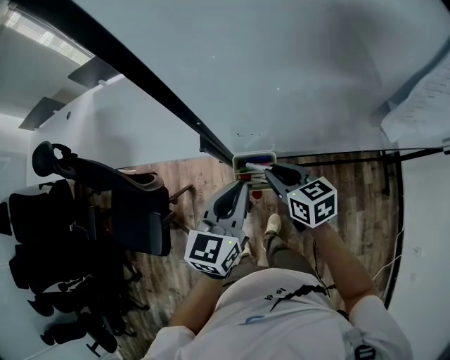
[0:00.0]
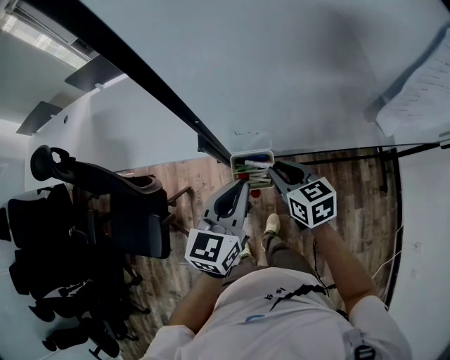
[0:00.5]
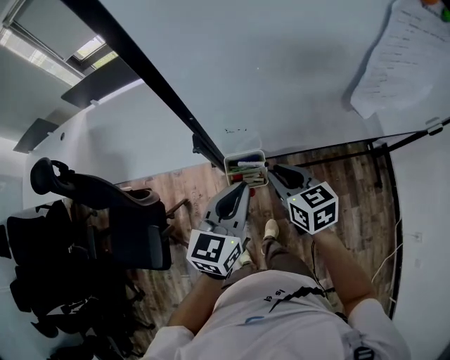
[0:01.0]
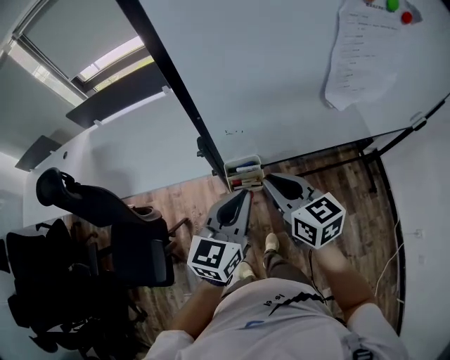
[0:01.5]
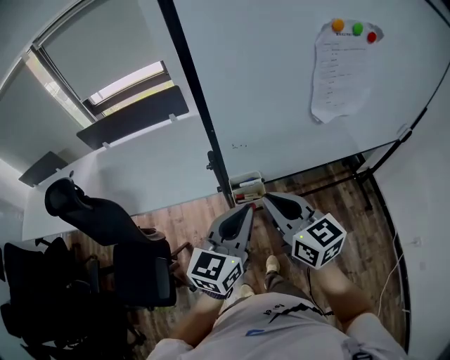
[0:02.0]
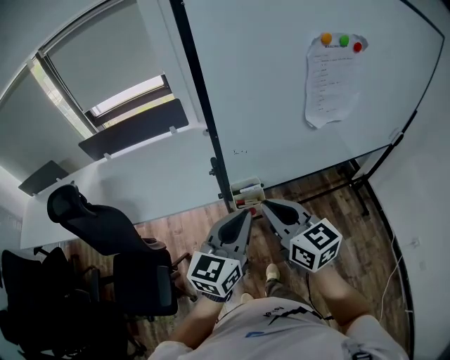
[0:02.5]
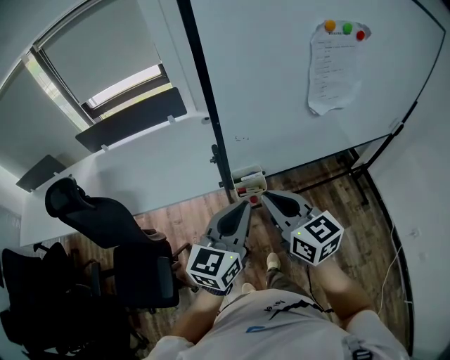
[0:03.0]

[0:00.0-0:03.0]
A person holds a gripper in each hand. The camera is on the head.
0:00.0 to 0:01.5: The left gripper heads upward and backward, covering about 10 cm. The right gripper travels upward and backward by some 15 cm.
0:01.5 to 0:03.0: The grippers both shift backward and upward by some 10 cm.

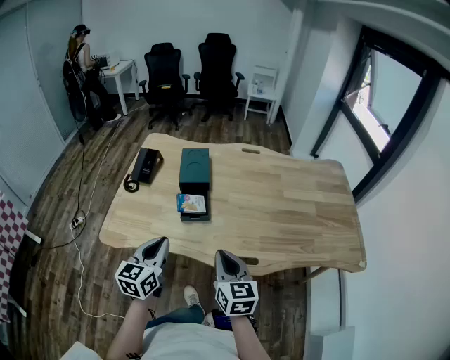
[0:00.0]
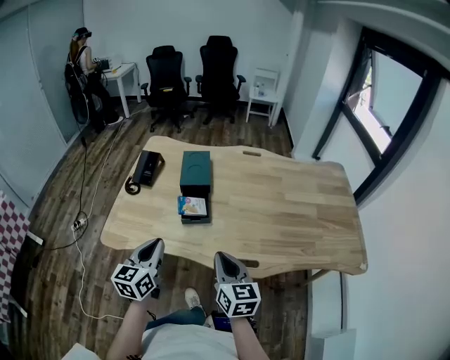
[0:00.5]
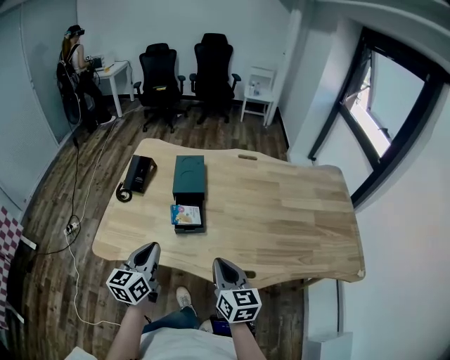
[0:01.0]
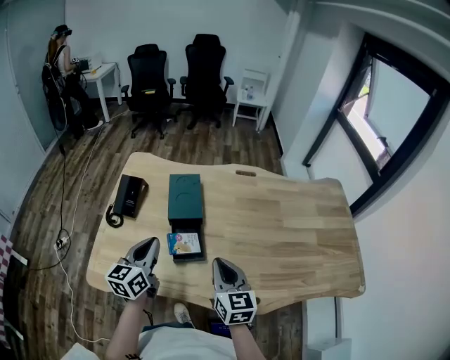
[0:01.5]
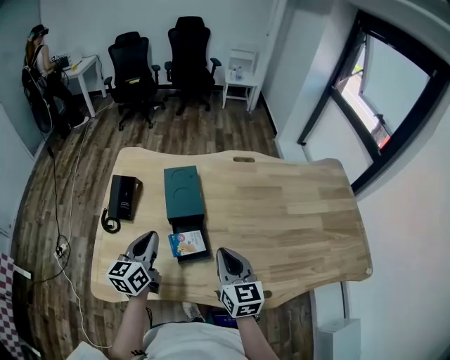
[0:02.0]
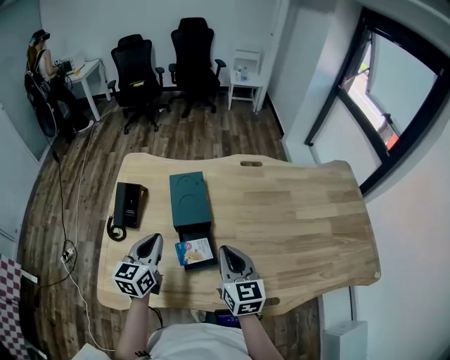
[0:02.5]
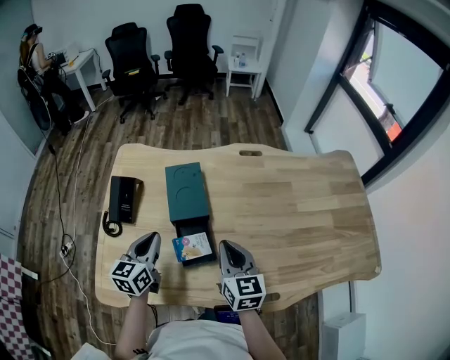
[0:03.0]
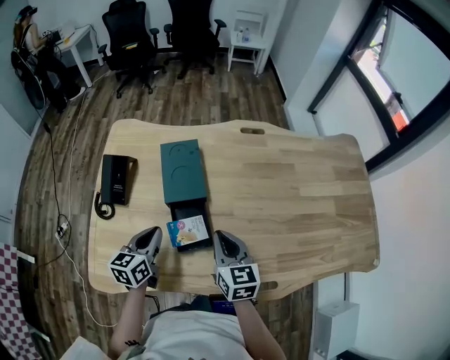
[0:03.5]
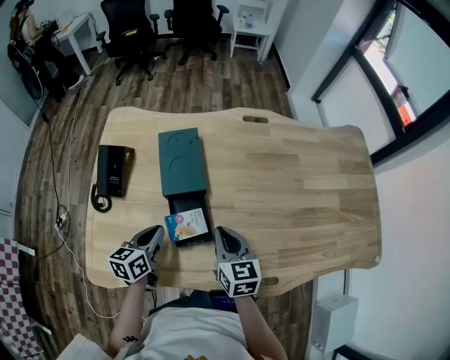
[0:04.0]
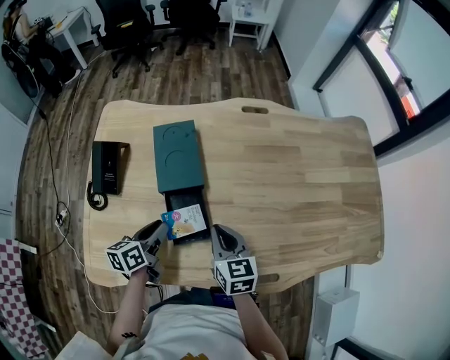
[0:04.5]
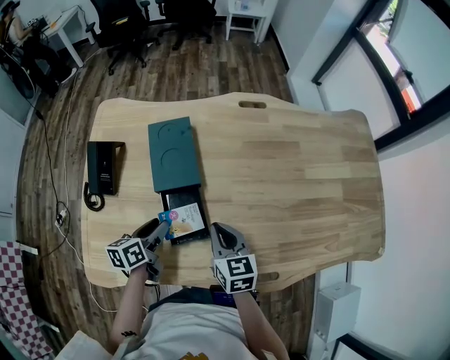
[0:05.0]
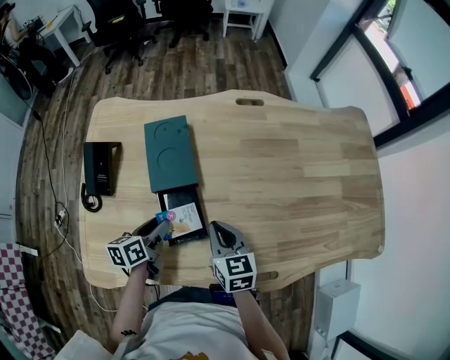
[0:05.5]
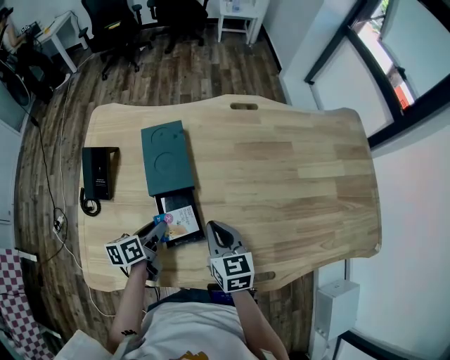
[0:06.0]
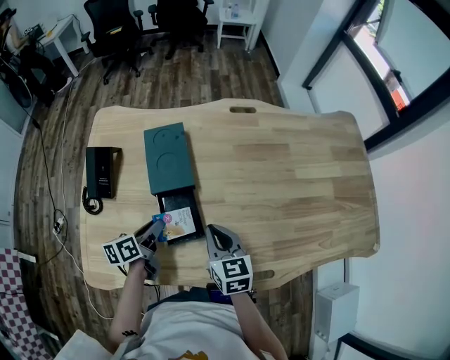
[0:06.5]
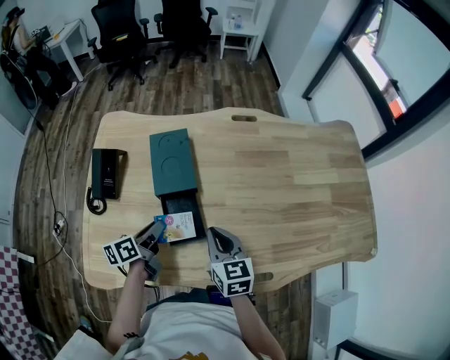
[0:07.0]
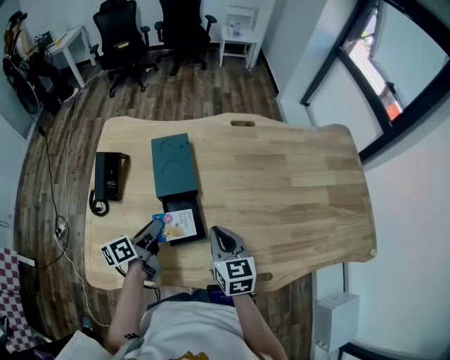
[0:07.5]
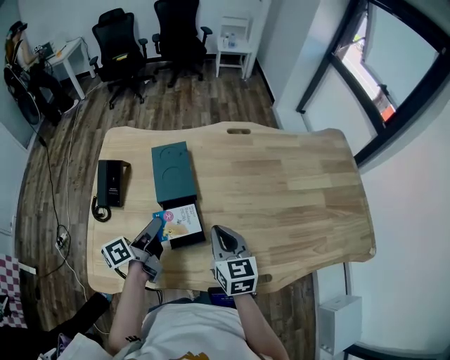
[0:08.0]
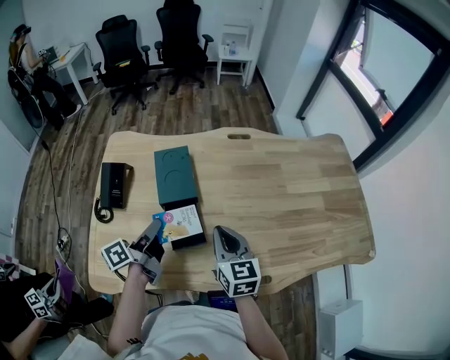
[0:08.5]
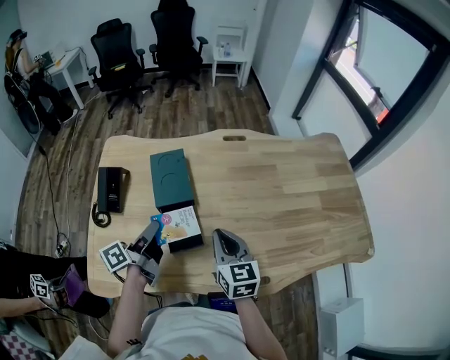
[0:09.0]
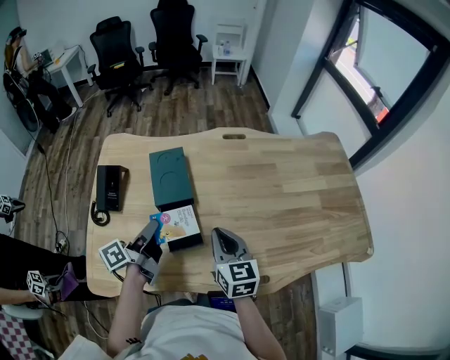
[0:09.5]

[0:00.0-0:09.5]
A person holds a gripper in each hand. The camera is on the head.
0:00.0 to 0:02.0: The two grippers go roughly 25 cm forward.
0:02.0 to 0:04.0: The grippers both shift downward by approximately 10 cm. The left gripper rotates about 20 degrees.
0:04.0 to 0:05.5: The left gripper ends up some 5 cm from where it was, and opens.
0:05.5 to 0:07.5: The two grippers go roughly 5 cm upward. The left gripper changes its angle by about 20 degrees.
0:07.5 to 0:09.5: The left gripper is displaced upward by roughly 5 cm.

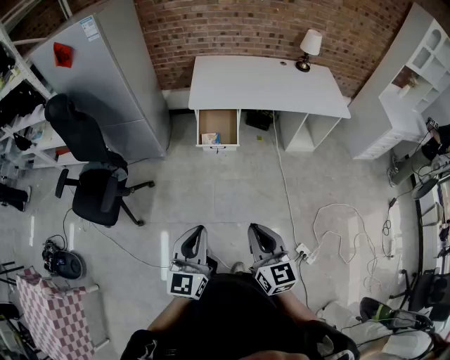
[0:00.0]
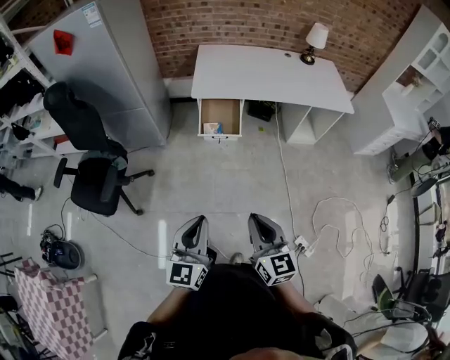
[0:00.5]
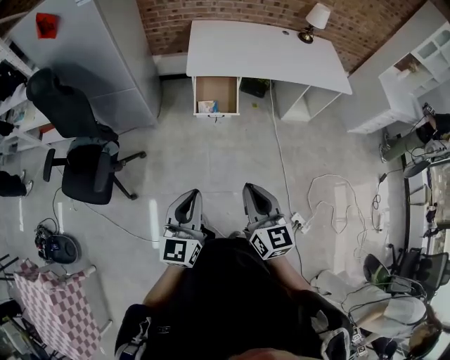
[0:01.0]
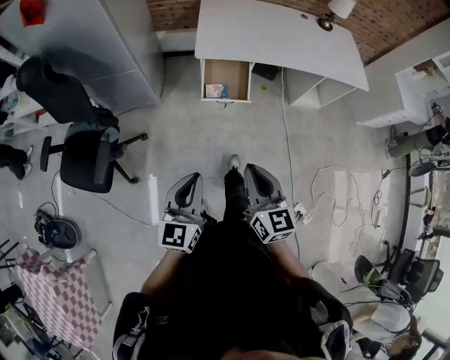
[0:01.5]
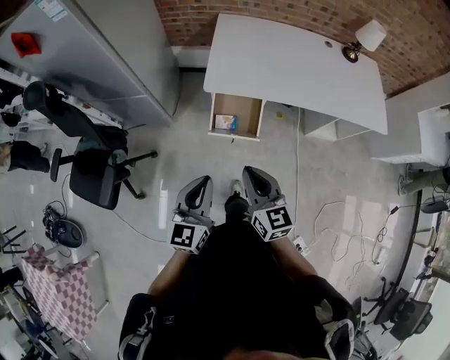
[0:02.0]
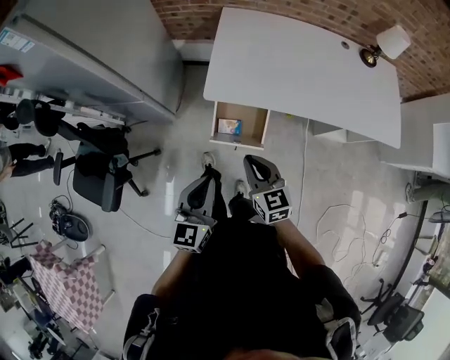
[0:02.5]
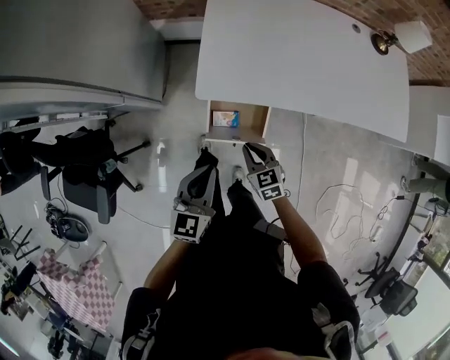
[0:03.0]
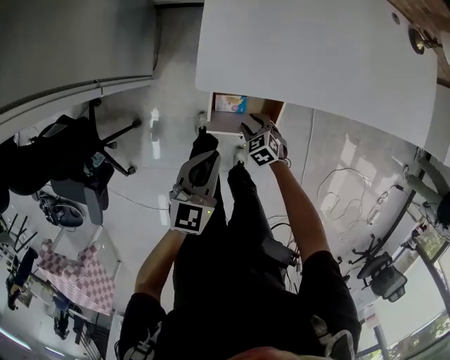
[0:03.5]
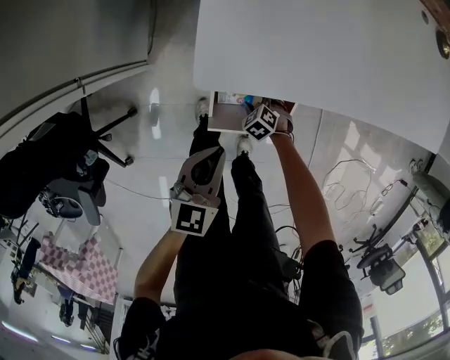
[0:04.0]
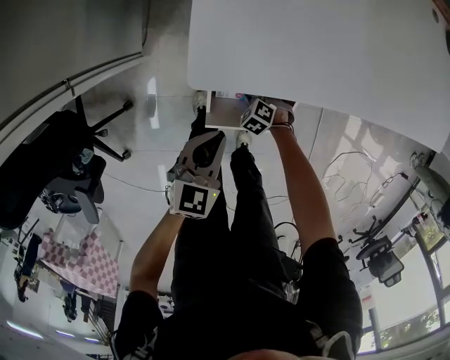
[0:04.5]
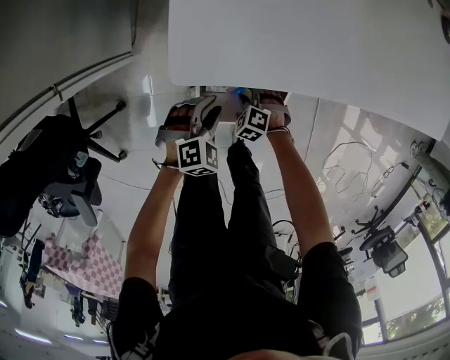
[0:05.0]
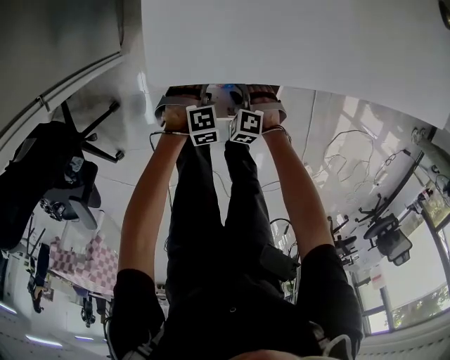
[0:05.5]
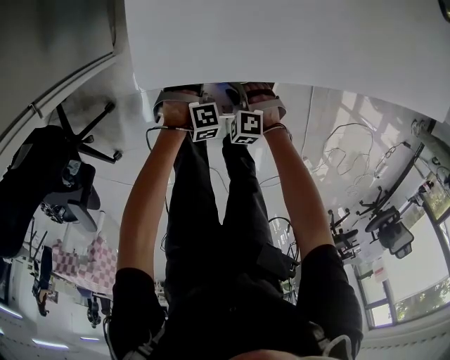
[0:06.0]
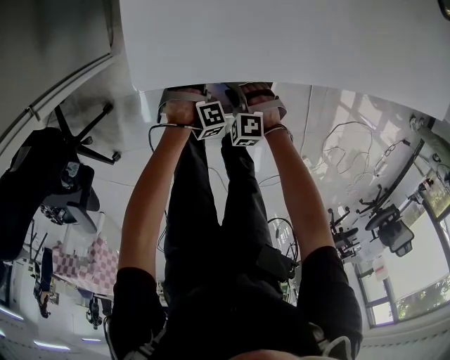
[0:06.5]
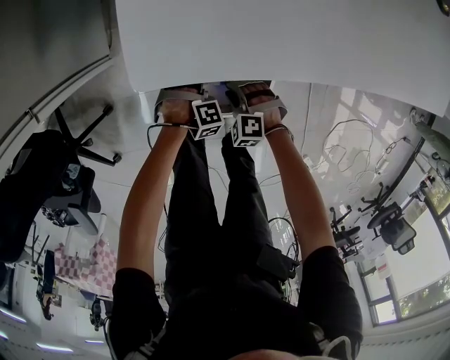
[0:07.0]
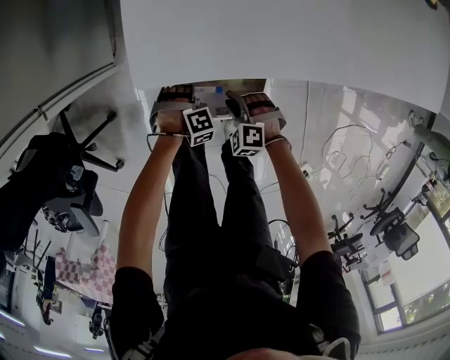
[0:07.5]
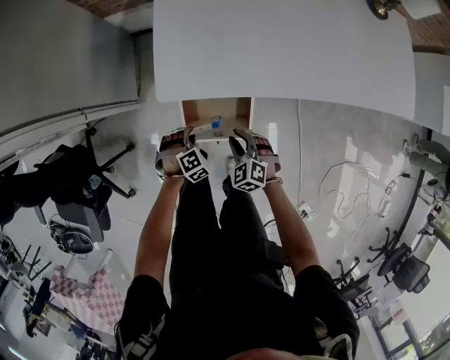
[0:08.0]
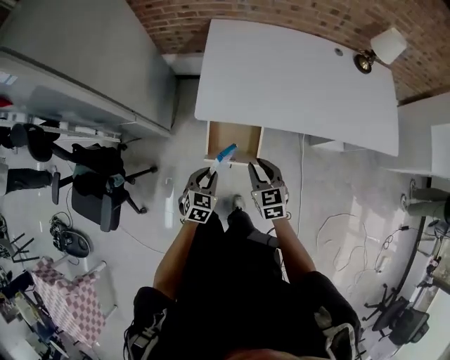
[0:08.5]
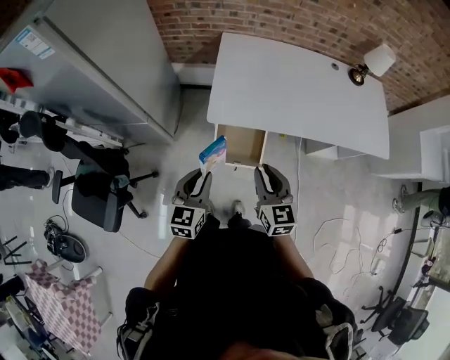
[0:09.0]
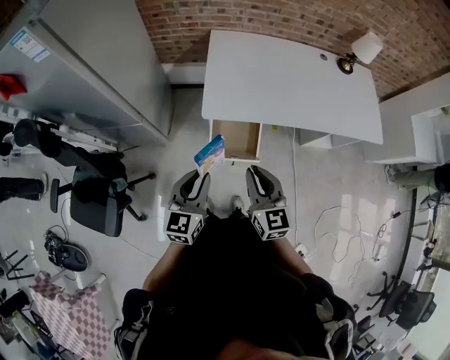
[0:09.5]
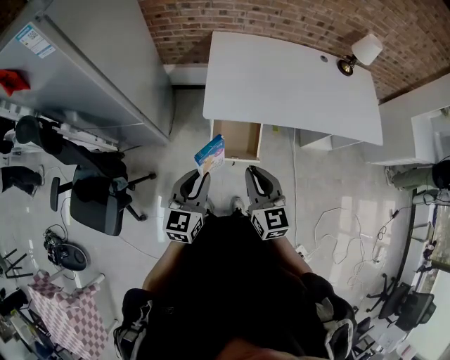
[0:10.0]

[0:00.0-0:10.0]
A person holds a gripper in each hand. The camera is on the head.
0:00.0 to 0:02.0: The grippers both shift forward by some 40 cm.
0:02.0 to 0:04.0: The left gripper travels downward by approximately 30 cm, and changes its angle by about 30 degrees, while the right gripper goes roughly 60 cm downward, tilts its fingers some 60 degrees downward, and opens.
0:04.0 to 0:06.0: The left gripper shifts roughly 30 cm downward, rotates around the line of its fingers by approximately 80 degrees, clockwise from behind, and opens its fingers. Meanwhile the right gripper rotates some 30 degrees.
0:06.0 to 0:08.0: Both grippers move upward, about 20 cm. The right gripper turns by about 30 degrees, while the left gripper rotates about 30 degrees, and closes.
0:08.0 to 0:10.0: Both grippers travel together upward, about 40 cm. The right gripper points its fingers approximately 40 degrees further upward. The left gripper tips its fingers upward by about 50 degrees.

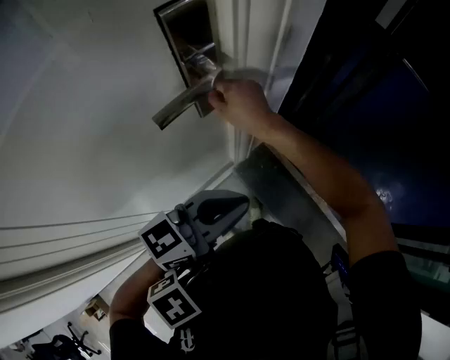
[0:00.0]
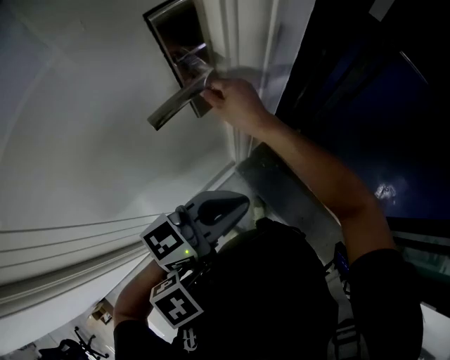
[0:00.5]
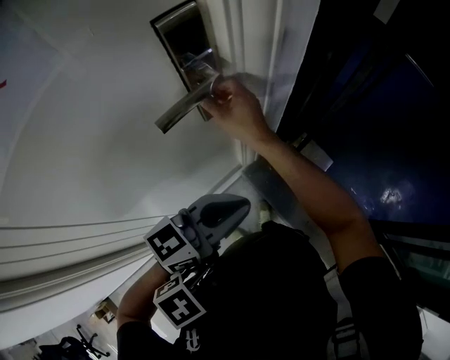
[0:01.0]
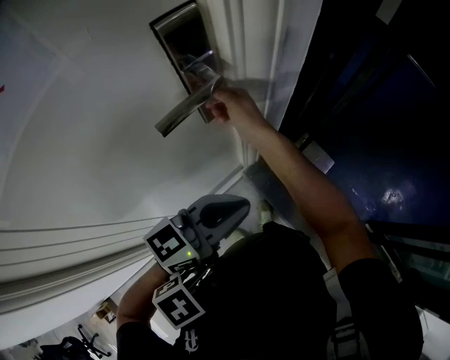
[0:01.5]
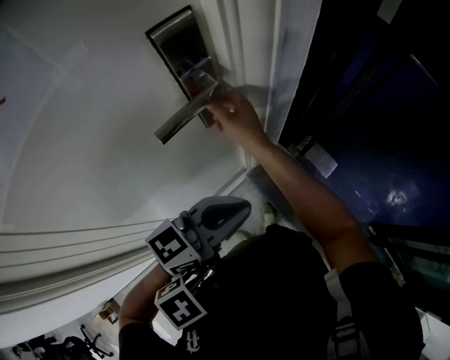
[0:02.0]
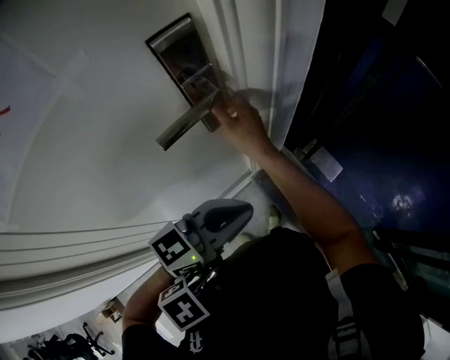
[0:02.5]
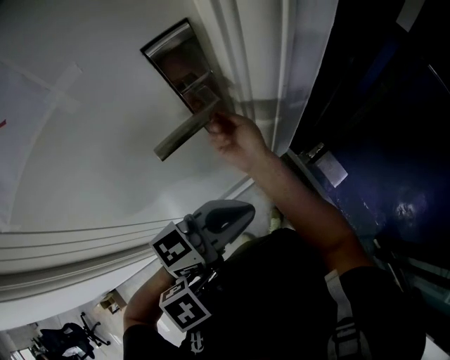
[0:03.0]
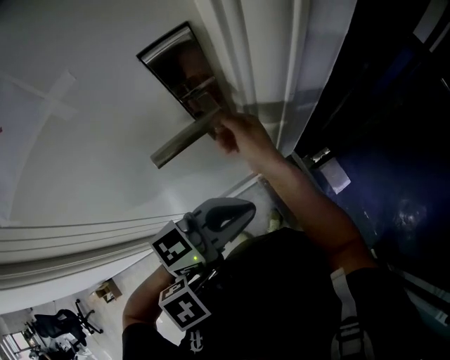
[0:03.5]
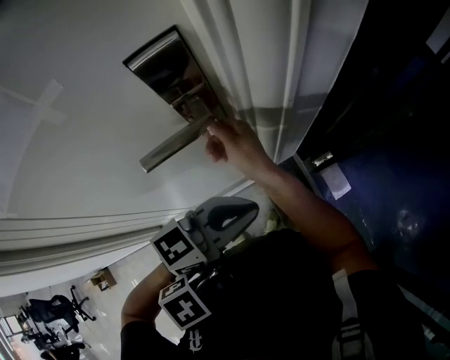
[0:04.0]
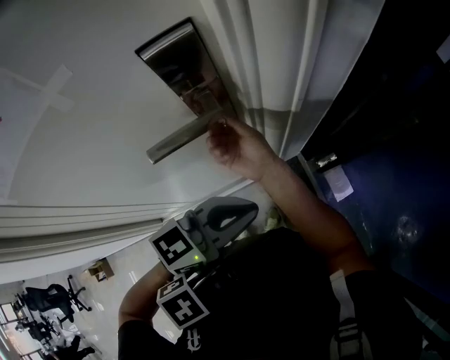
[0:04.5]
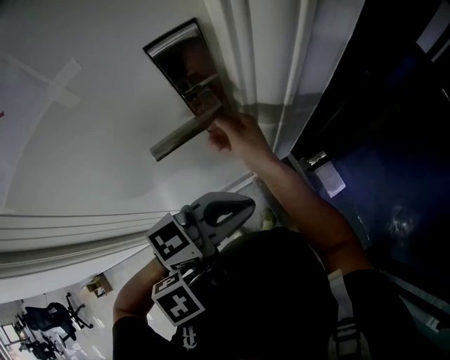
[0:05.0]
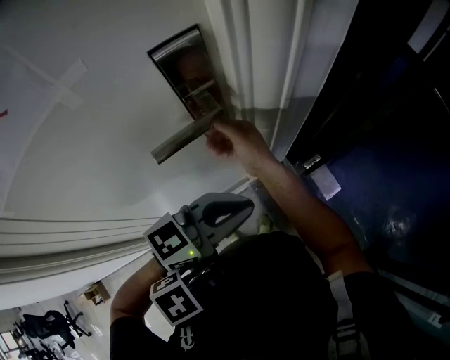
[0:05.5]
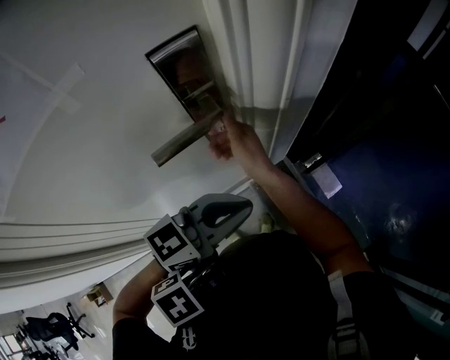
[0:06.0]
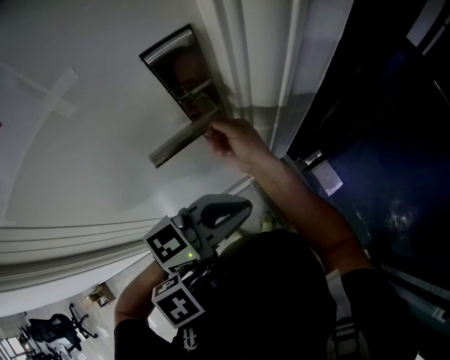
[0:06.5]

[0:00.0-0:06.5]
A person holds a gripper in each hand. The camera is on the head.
0:00.0 to 0:02.0: Neither gripper changes place.
0:02.0 to 0:04.5: The right gripper travels to the left and forward by about 10 cm, while the left gripper moves to the left, some 5 cm.
0:04.5 to 0:06.5: The right gripper ends up approximately 5 cm from where it was.
